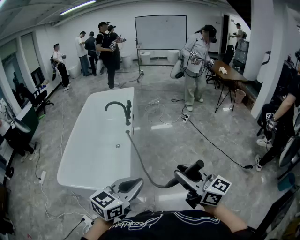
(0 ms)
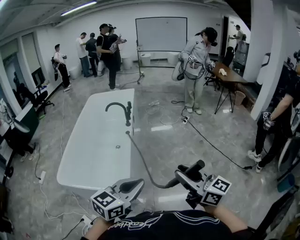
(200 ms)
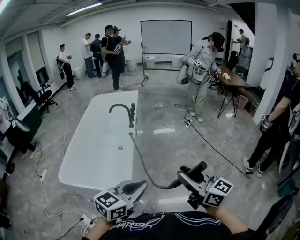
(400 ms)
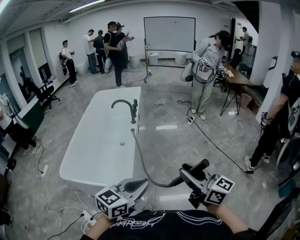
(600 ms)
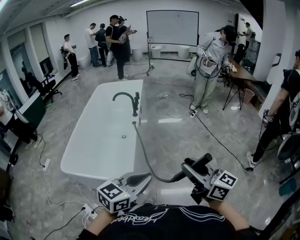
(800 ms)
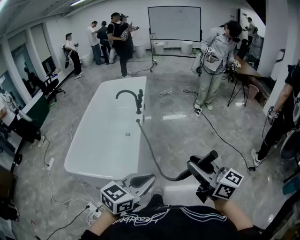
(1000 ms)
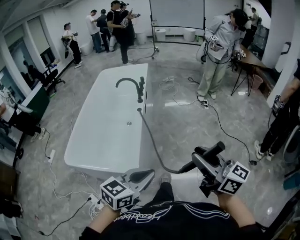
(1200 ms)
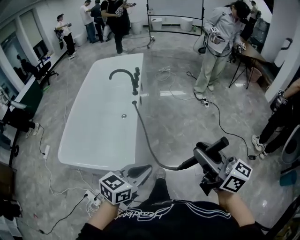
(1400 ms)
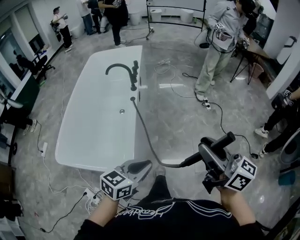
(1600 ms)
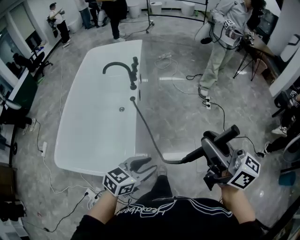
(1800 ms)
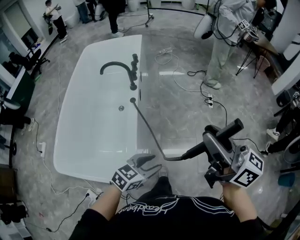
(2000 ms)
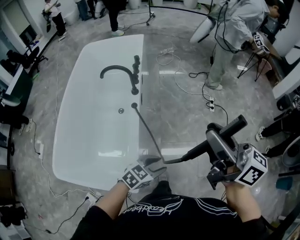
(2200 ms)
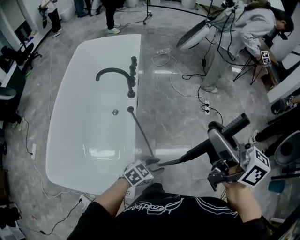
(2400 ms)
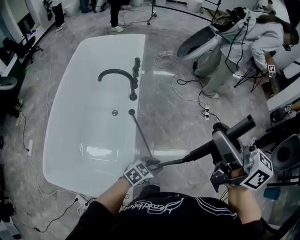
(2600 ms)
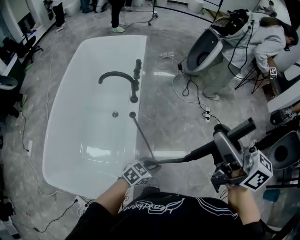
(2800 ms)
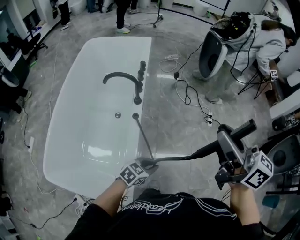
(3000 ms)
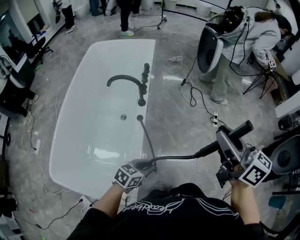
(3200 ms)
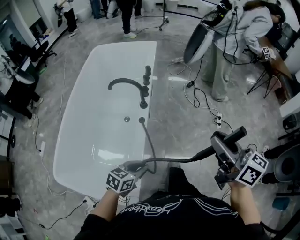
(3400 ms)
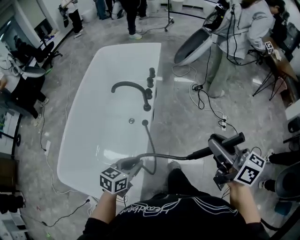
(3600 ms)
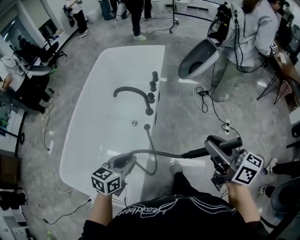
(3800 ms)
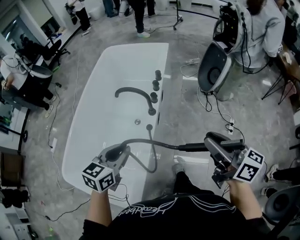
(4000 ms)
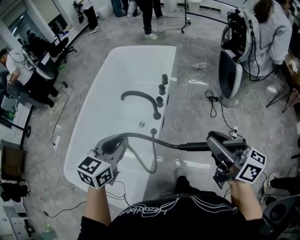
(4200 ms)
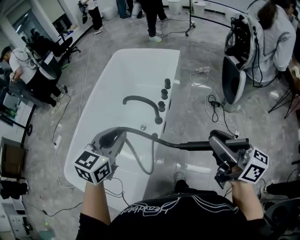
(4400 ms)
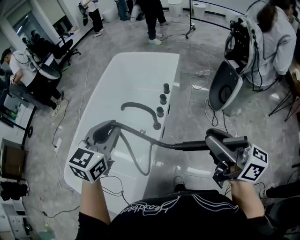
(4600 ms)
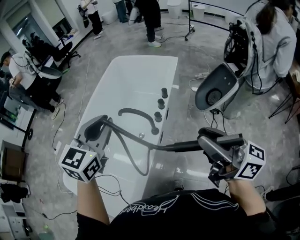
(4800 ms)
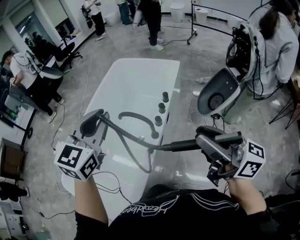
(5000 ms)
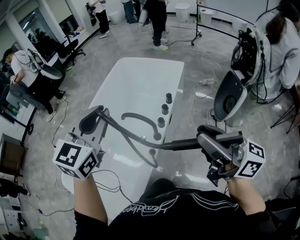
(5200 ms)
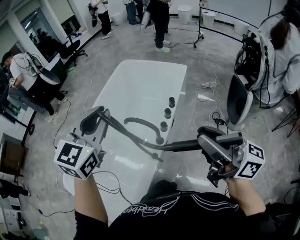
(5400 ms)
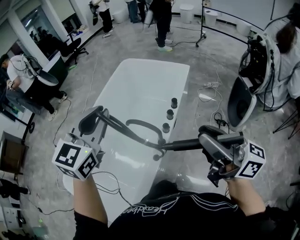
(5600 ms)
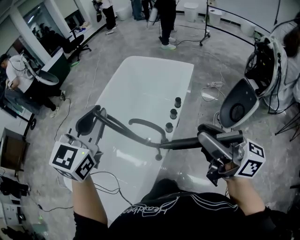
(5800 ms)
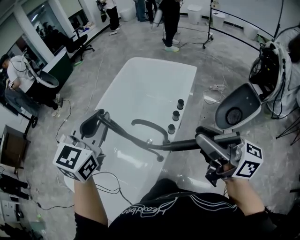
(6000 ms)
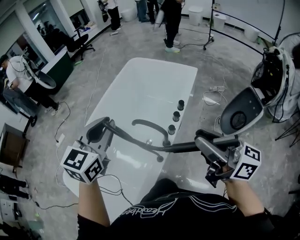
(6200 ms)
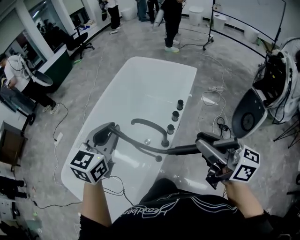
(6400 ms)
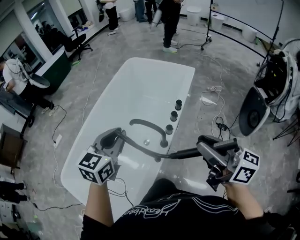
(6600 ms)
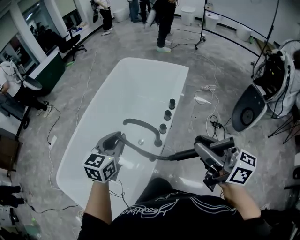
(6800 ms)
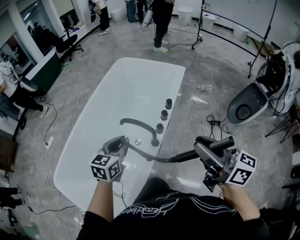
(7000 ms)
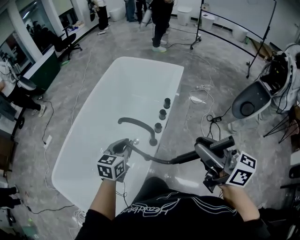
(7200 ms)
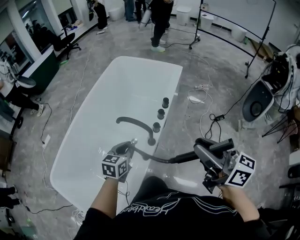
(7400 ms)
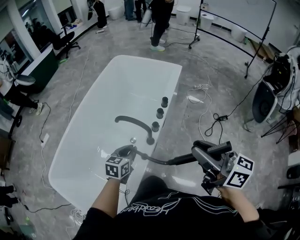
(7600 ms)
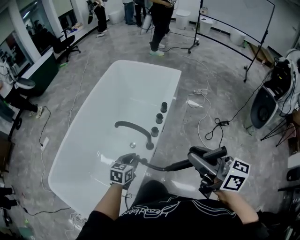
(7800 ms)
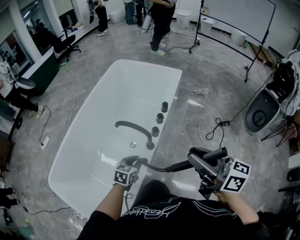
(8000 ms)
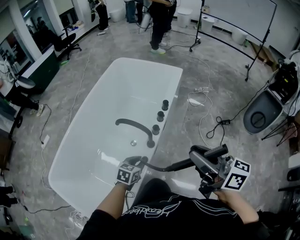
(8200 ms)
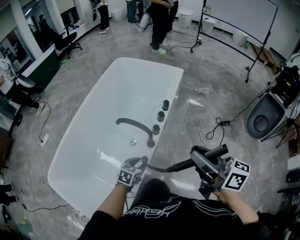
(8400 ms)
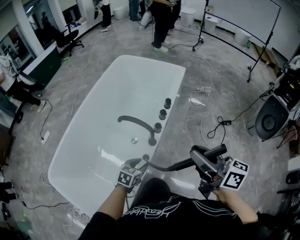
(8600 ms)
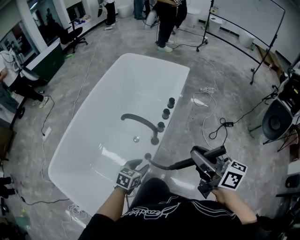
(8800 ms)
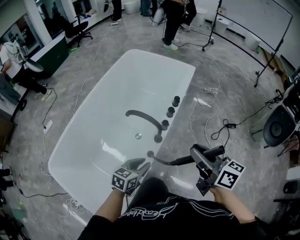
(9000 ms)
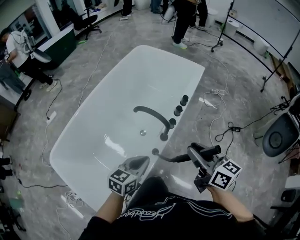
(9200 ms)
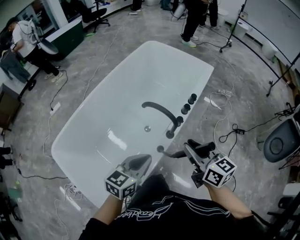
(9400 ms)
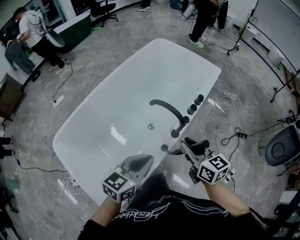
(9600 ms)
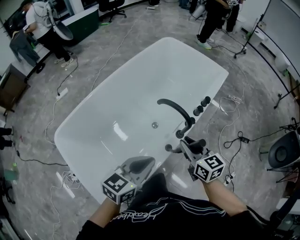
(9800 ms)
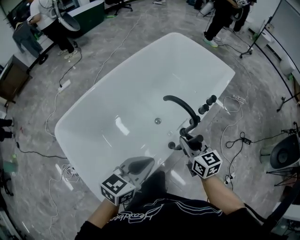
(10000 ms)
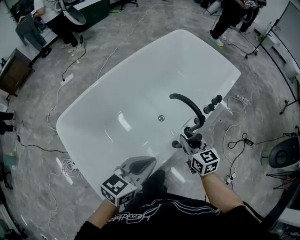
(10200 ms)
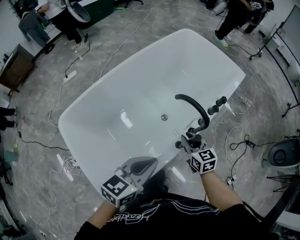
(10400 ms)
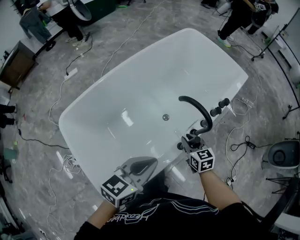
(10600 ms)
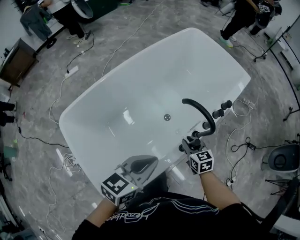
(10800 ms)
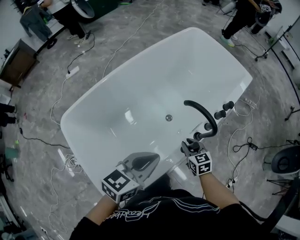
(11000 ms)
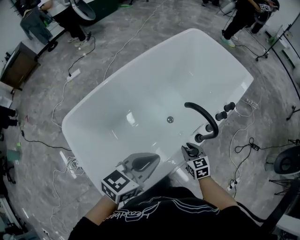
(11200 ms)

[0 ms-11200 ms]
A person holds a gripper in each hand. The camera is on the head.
0 ms to 1600 ms: The right gripper travels forward by approximately 10 cm. Meanwhile the left gripper travels downward and forward by roughly 15 cm.
1600 ms to 3200 ms: The right gripper travels forward by some 30 cm. The left gripper shifts about 30 cm forward, downward and to the left, and opens, then closes again.
3200 ms to 4800 ms: The left gripper heads upward, covering approximately 35 cm, and swivels about 60 degrees, while the right gripper moves roughly 5 cm downward and comes back, and swivels about 30 degrees.
4800 ms to 6400 ms: The left gripper shifts roughly 5 cm forward; the right gripper heads forward, covering some 10 cm.
6400 ms to 8000 ms: The left gripper heads downward, covering approximately 30 cm, and swivels about 30 degrees. The right gripper ends up roughly 5 cm from where it was.
8000 ms to 9600 ms: The right gripper travels downward and to the left by approximately 20 cm, and swivels roughly 30 degrees. Meanwhile the left gripper heads upward and backward, covering about 15 cm, swivels roughly 20 degrees, and opens and closes again.
9600 ms to 11200 ms: The right gripper travels downward and to the left by about 25 cm, and turns by some 30 degrees, while the left gripper heads to the left, covering roughly 10 cm.

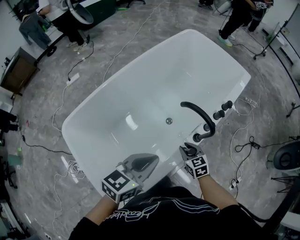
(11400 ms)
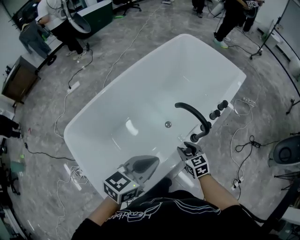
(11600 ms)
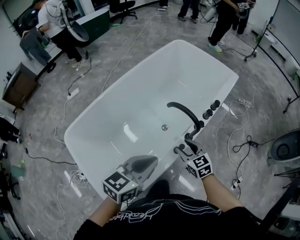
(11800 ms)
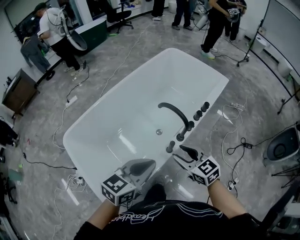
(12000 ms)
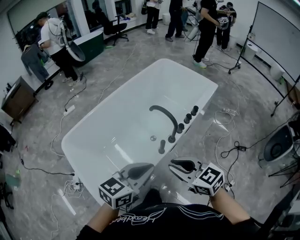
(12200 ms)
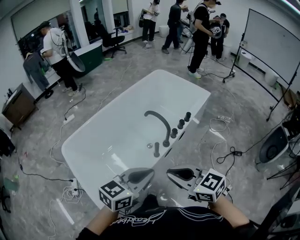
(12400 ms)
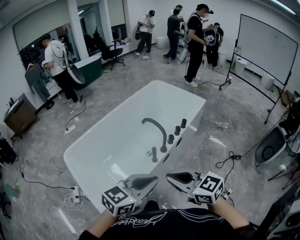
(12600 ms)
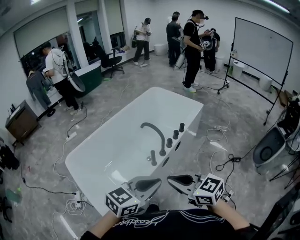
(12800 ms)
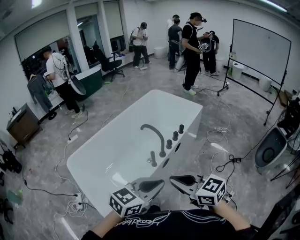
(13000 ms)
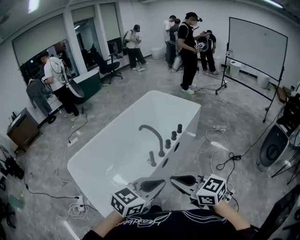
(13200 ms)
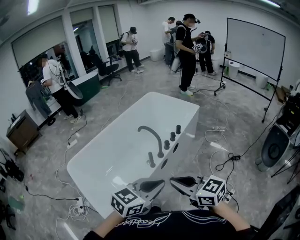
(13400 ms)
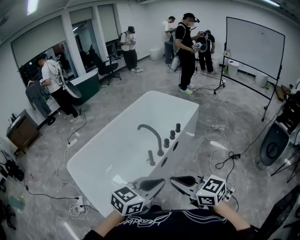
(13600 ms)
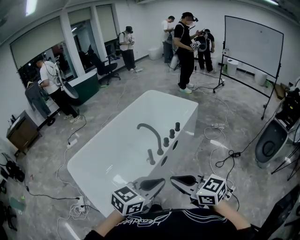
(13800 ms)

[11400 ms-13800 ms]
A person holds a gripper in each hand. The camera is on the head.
11400 ms to 12600 ms: The left gripper shifts roughly 30 cm backward, to the right and upward, while the right gripper is displaced upward and backward by approximately 40 cm, rotates about 30 degrees, and opens and closes again.
12600 ms to 13800 ms: The right gripper heads backward, covering approximately 5 cm. The left gripper shifts roughly 5 cm to the right.

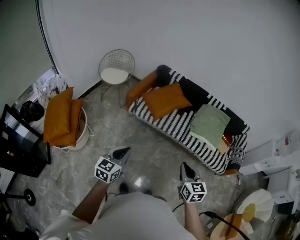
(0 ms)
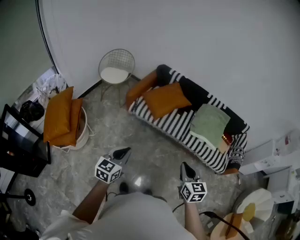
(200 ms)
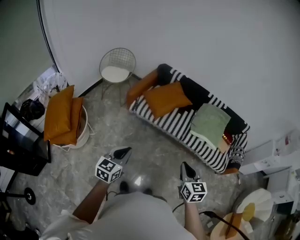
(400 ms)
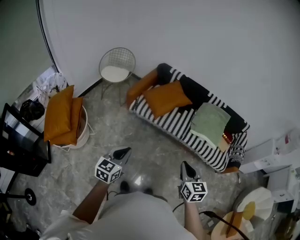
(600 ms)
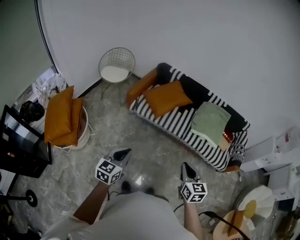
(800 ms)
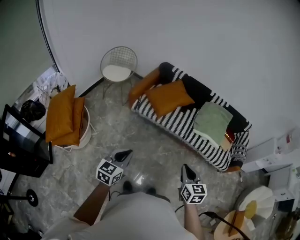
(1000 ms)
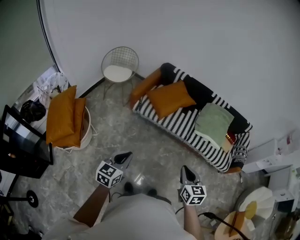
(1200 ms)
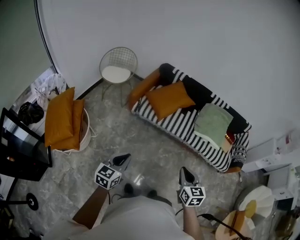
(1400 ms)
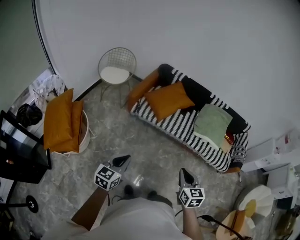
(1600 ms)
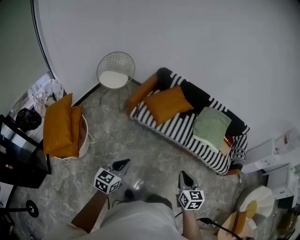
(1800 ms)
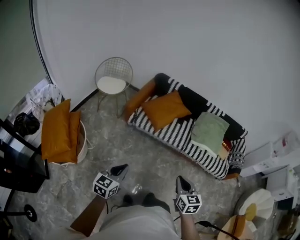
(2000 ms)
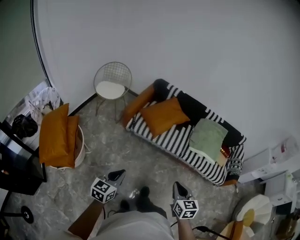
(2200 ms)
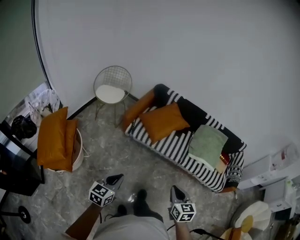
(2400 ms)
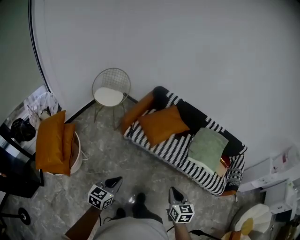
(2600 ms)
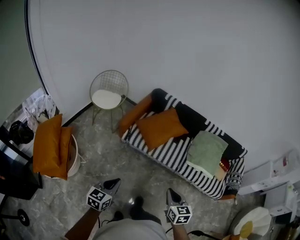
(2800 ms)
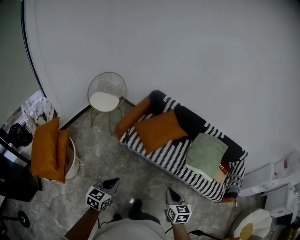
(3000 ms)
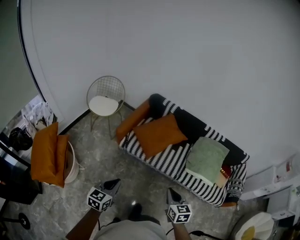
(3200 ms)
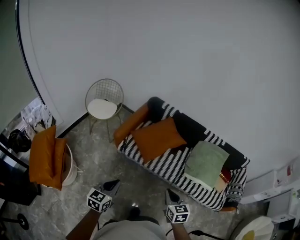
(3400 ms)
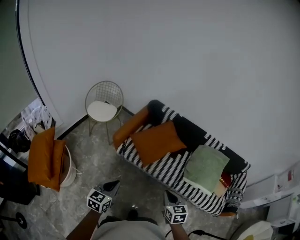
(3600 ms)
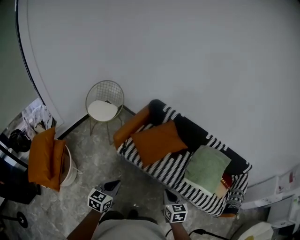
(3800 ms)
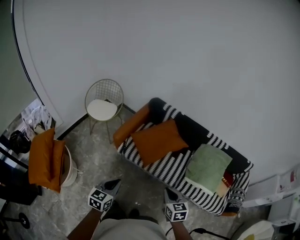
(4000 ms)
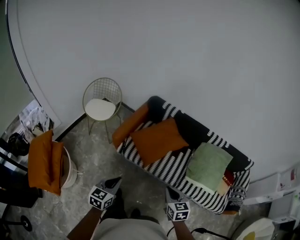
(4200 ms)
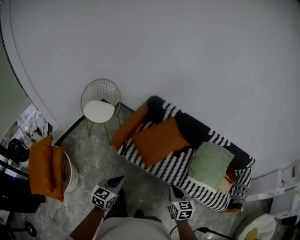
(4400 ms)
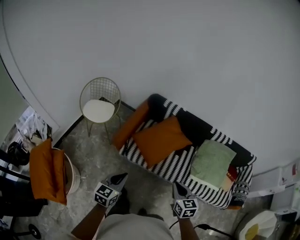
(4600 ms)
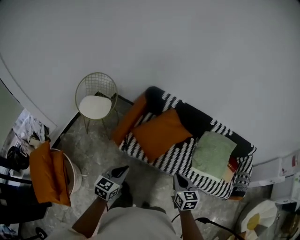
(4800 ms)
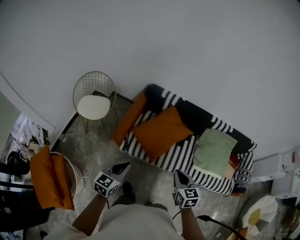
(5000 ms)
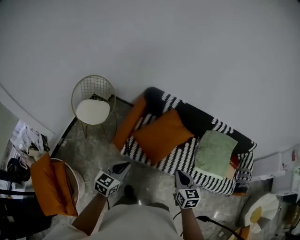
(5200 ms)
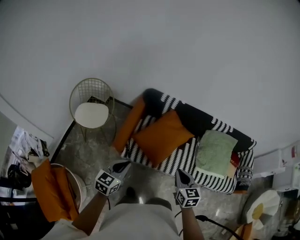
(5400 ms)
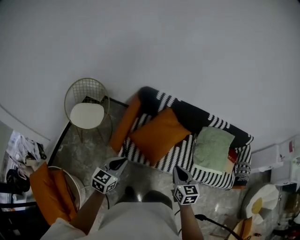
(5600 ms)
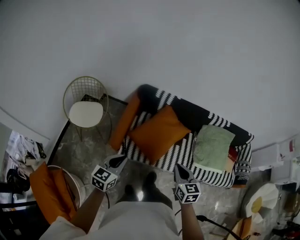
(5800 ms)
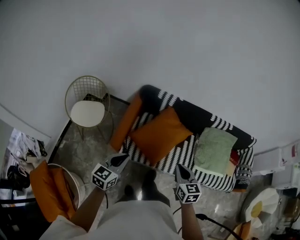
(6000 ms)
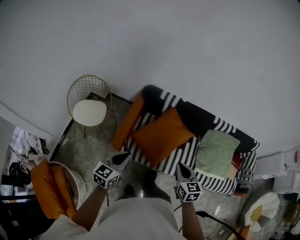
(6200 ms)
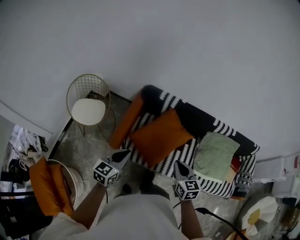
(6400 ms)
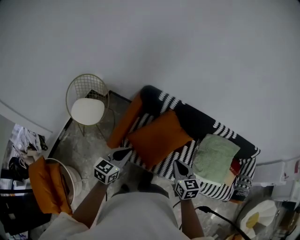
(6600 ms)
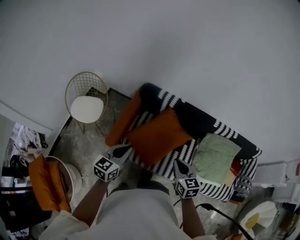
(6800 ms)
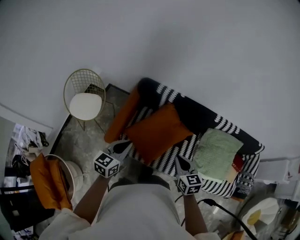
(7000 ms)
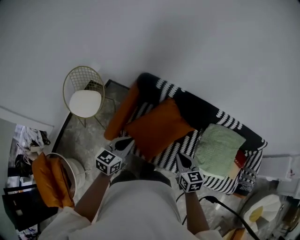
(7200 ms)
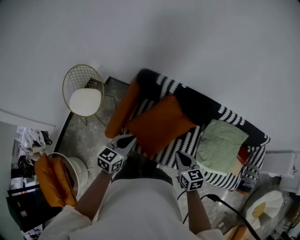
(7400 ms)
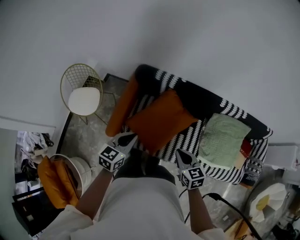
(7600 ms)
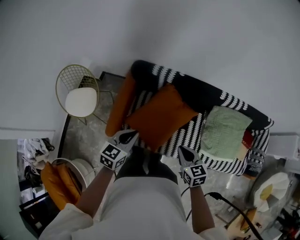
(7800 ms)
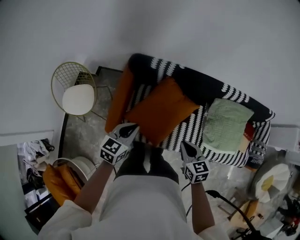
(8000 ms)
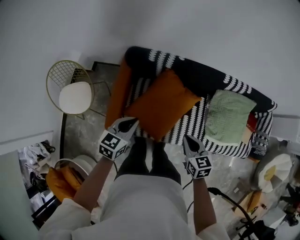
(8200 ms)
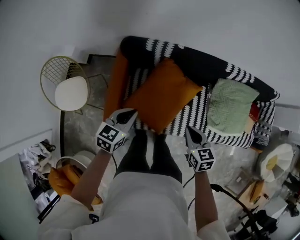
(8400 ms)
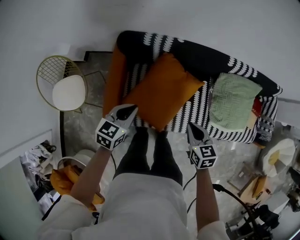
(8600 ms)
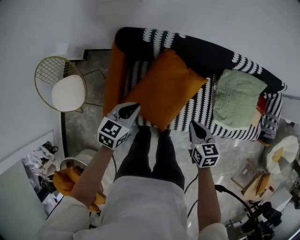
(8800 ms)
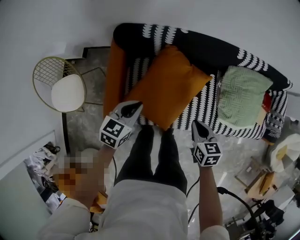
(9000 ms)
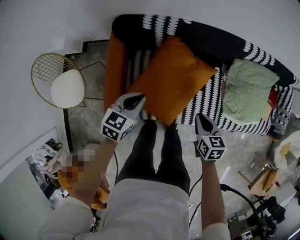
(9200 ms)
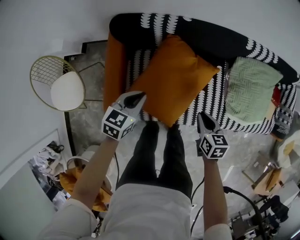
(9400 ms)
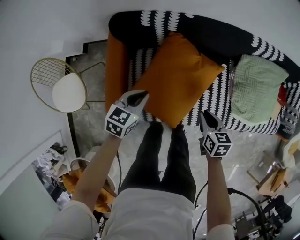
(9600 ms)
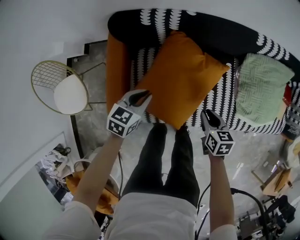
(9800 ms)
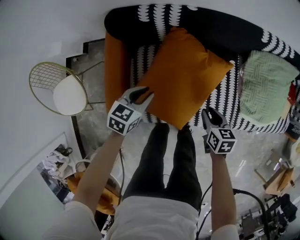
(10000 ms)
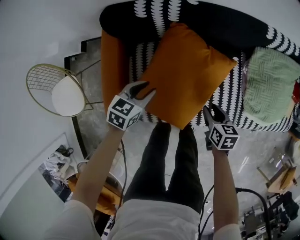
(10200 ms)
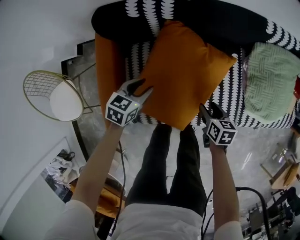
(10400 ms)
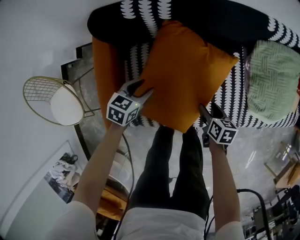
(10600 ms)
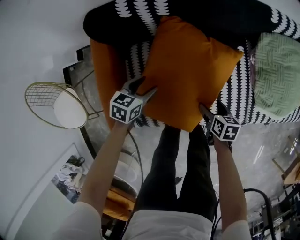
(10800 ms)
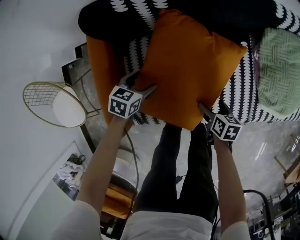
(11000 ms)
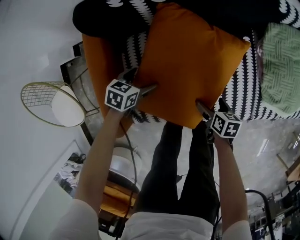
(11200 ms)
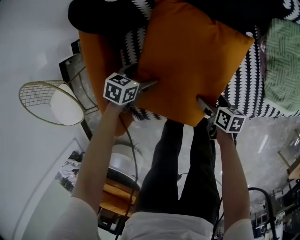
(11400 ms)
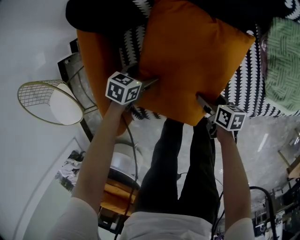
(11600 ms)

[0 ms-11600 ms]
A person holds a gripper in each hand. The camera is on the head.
0 ms to 1400 ms: The grippers both shift to the left by some 10 cm.
1400 ms to 2800 ms: The two grippers go roughly 15 cm forward.
2800 ms to 4400 ms: The two grippers go about 30 cm forward.
4400 ms to 5800 ms: Both grippers move forward and to the left, about 25 cm.
5800 ms to 7200 ms: The two grippers go about 25 cm forward and to the right.
7200 ms to 8800 ms: Both grippers travel together downward and forward, approximately 20 cm. The left gripper rotates some 20 degrees; the right gripper rotates some 20 degrees.
8800 ms to 10200 ms: The two grippers go some 25 cm downward.
10200 ms to 11600 ms: The two grippers go approximately 20 cm downward. The right gripper rotates some 20 degrees, and opens. The left gripper opens its fingers.
